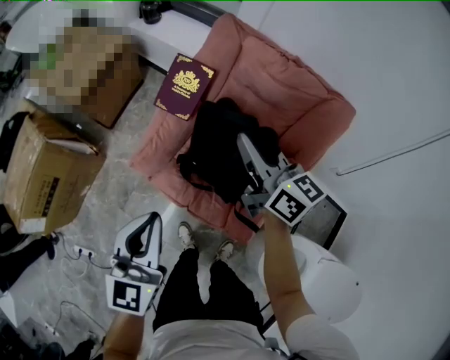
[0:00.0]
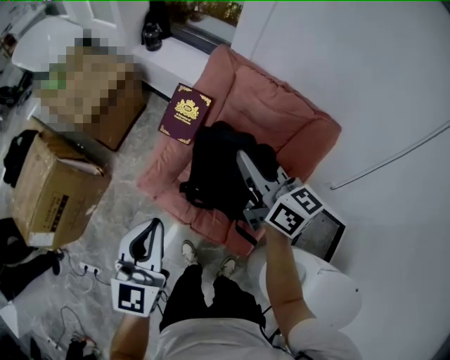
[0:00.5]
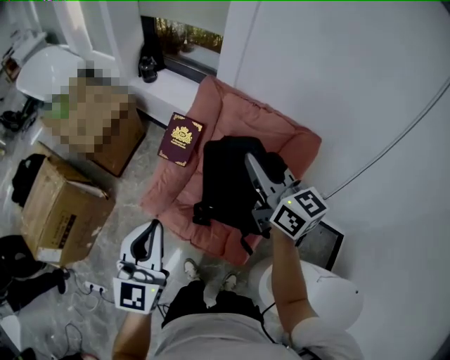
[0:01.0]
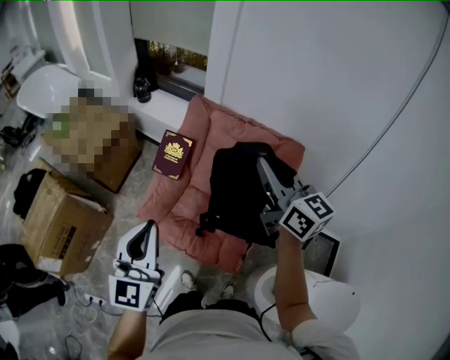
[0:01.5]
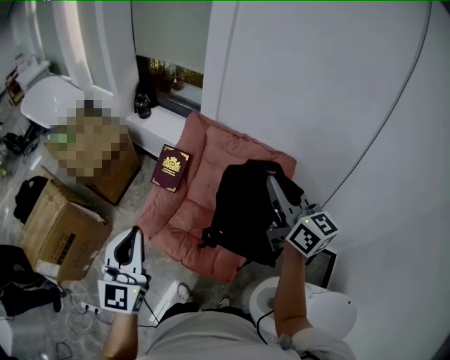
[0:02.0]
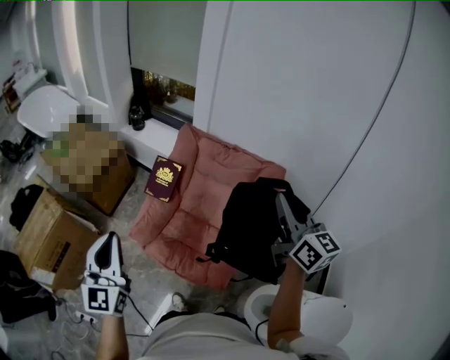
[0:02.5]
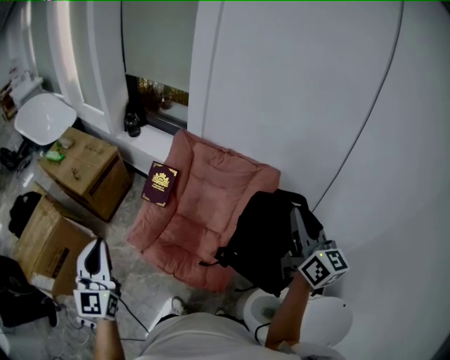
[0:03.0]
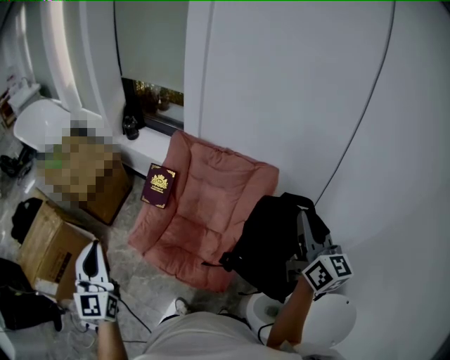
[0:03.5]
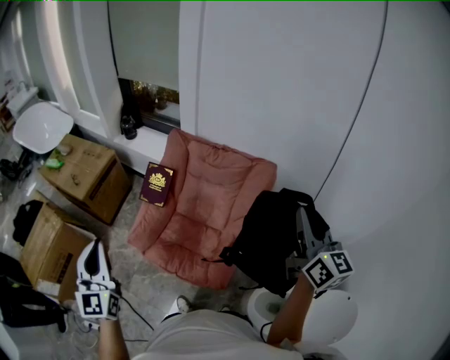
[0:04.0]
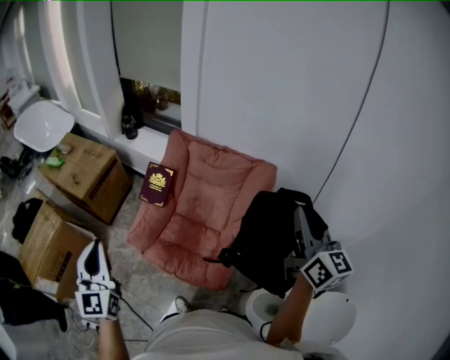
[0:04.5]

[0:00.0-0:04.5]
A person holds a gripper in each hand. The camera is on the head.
0.0 to 2.0 s: The left gripper is displaced upward by roughly 20 cm, while the right gripper goes roughly 30 cm upward, to the right and backward.
2.0 to 4.5 s: The left gripper shifts roughly 5 cm to the left, while the right gripper shifts some 15 cm to the right and backward.

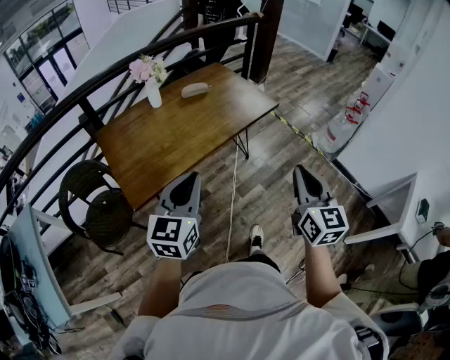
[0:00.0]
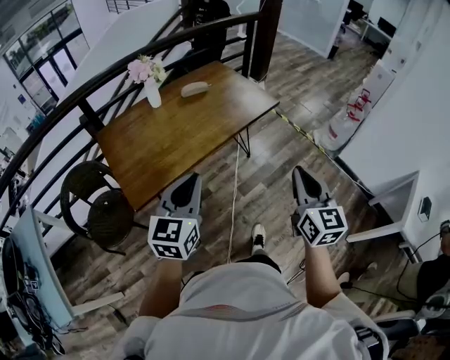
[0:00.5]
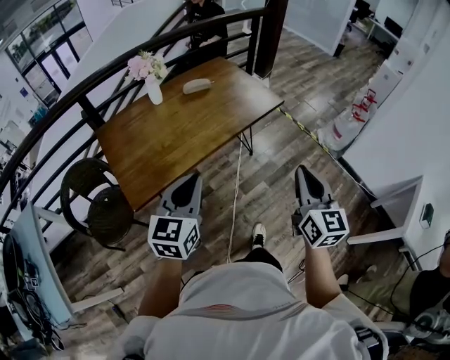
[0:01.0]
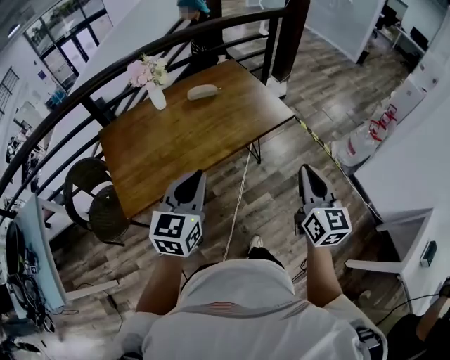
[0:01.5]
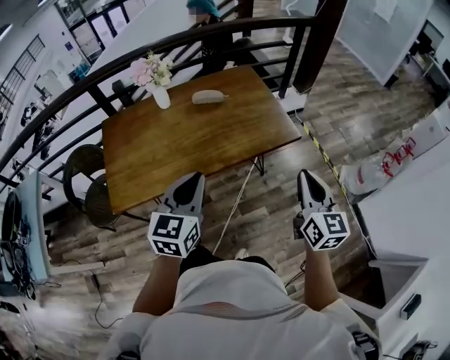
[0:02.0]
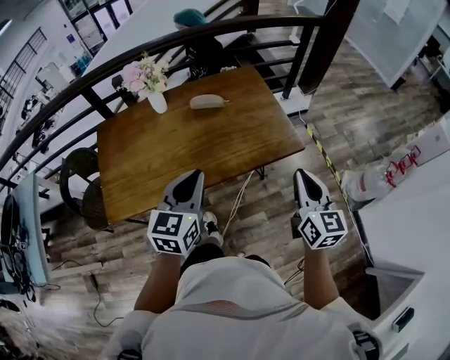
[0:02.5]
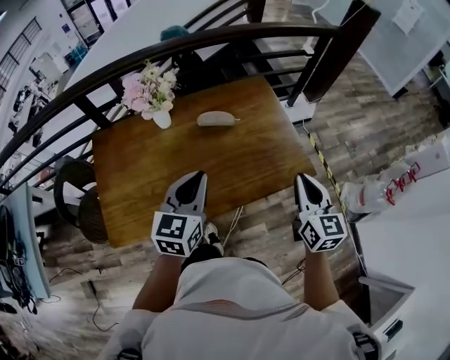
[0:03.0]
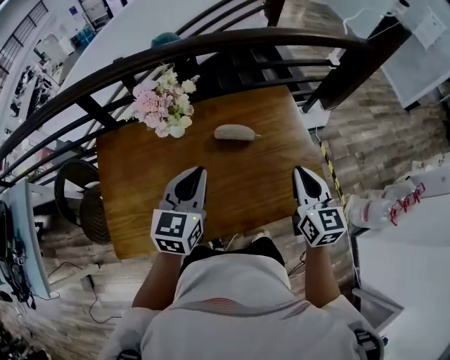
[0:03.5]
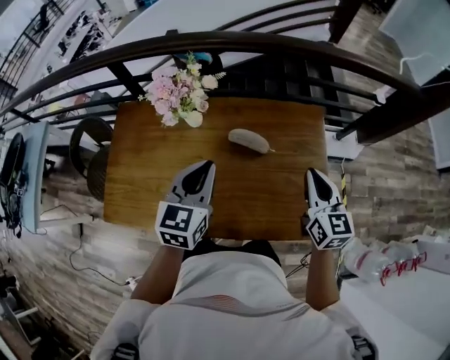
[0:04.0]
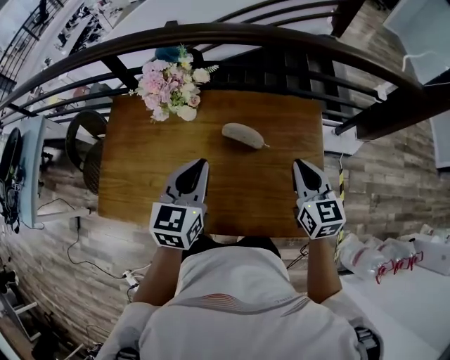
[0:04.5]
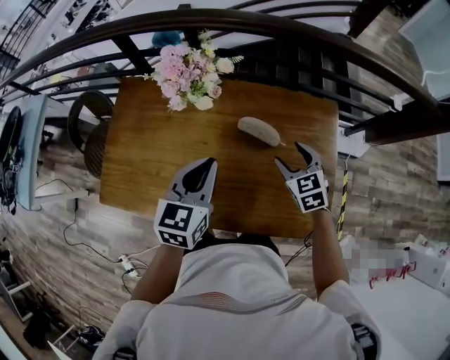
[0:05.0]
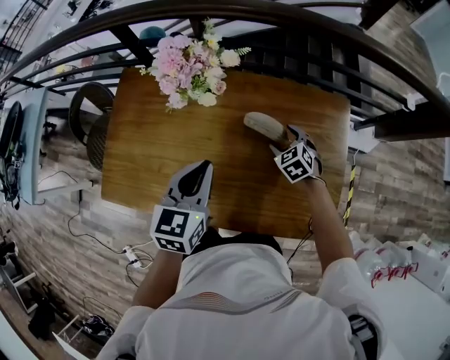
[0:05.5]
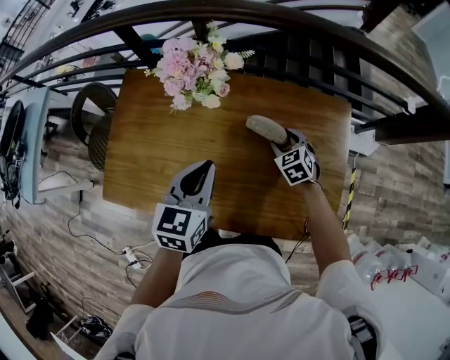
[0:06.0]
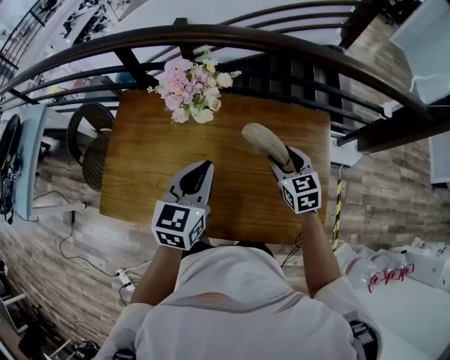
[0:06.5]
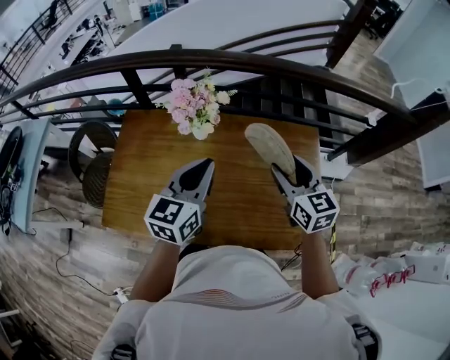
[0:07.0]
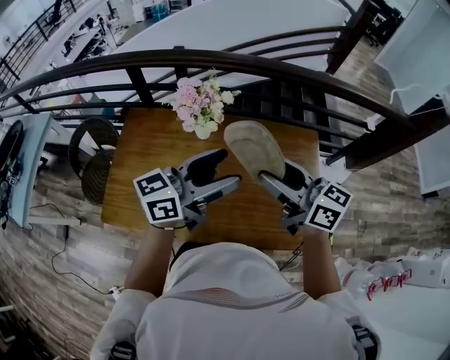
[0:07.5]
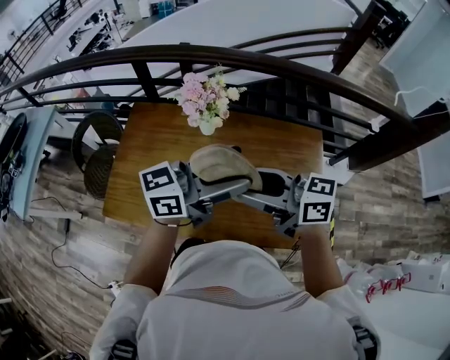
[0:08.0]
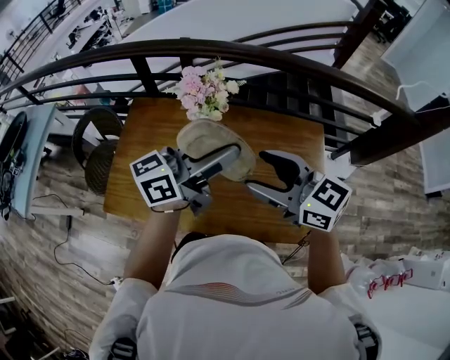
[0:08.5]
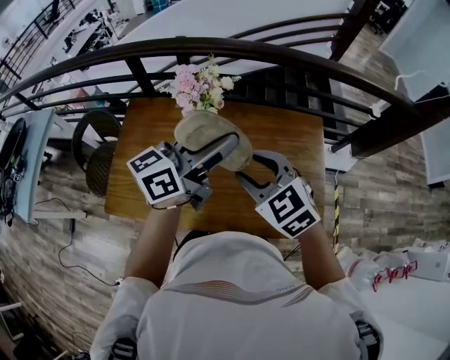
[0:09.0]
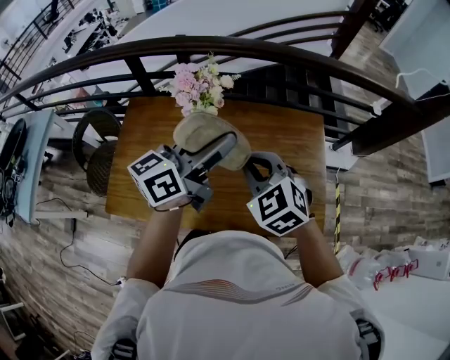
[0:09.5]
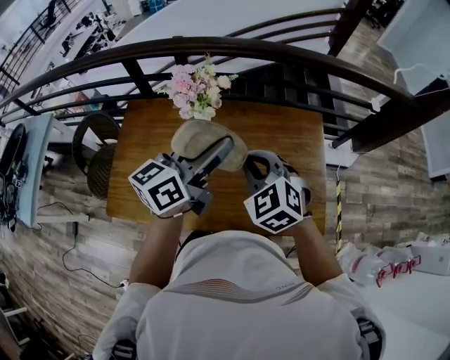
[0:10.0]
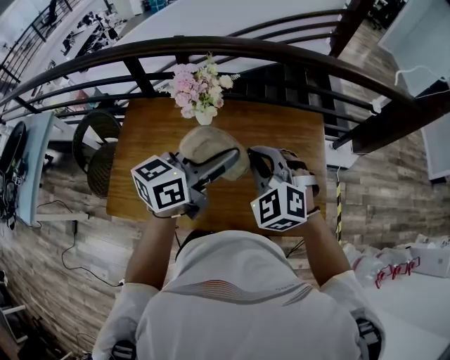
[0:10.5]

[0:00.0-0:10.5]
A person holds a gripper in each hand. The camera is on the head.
0.0 to 2.0 s: The two grippers go roughly 30 cm forward and to the right.
2.0 to 4.0 s: Both grippers travel together forward, roughly 40 cm. The left gripper changes its angle by roughly 20 degrees; the right gripper changes its angle by roughly 30 degrees.
4.0 to 6.5 s: The right gripper heads downward, to the left and forward, covering roughly 15 cm, swivels approximately 30 degrees, and opens up.
6.5 to 8.5 s: Both grippers travel together upward, some 15 cm. The left gripper points its fingers approximately 30 degrees further upward, and opens; the right gripper changes its angle by about 40 degrees.
8.5 to 10.5 s: The right gripper goes some 5 cm downward, rotates roughly 60 degrees, and closes its fingers.

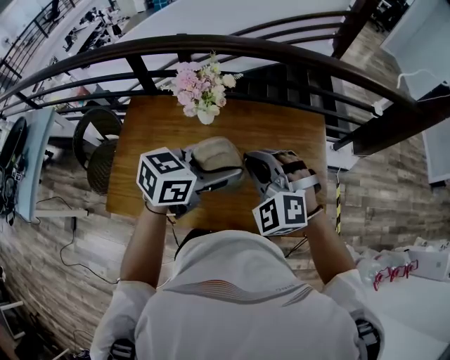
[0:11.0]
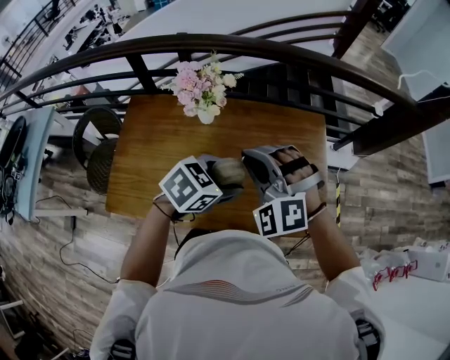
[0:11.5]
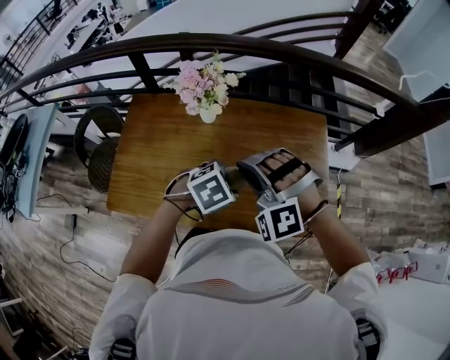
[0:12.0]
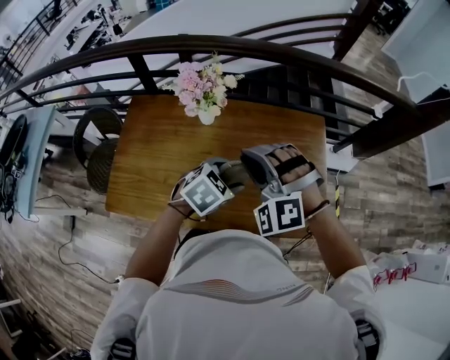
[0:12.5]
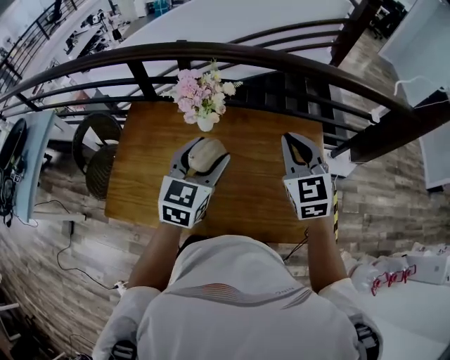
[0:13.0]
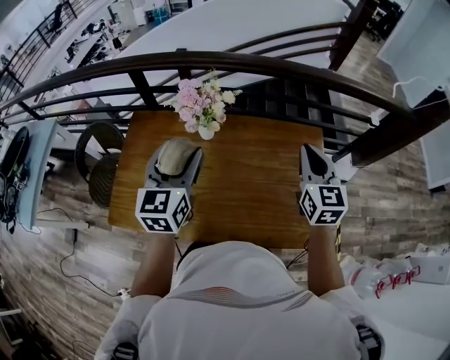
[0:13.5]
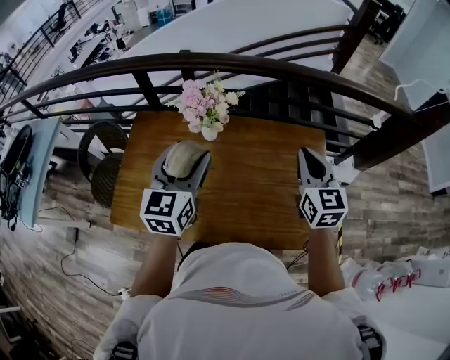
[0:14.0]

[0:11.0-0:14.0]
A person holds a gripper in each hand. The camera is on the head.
11.0 to 12.5 s: The left gripper is displaced downward by about 15 cm, and tilts its fingers approximately 30 degrees downward.
12.5 to 14.0 s: The right gripper goes about 15 cm to the right and forward, and twists approximately 80 degrees clockwise, seen from behind. Meanwhile the left gripper is displaced upward and to the left by some 20 cm, and angles its fingers upward, by some 40 degrees.

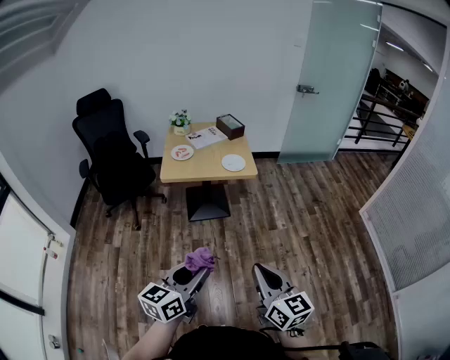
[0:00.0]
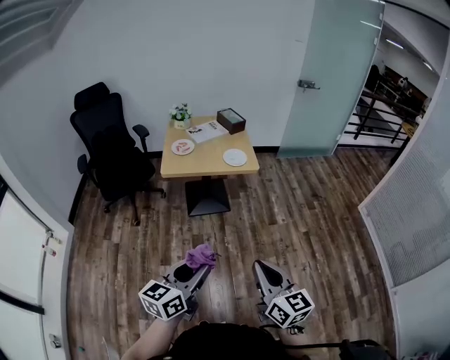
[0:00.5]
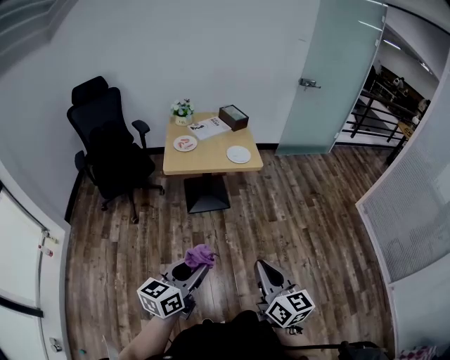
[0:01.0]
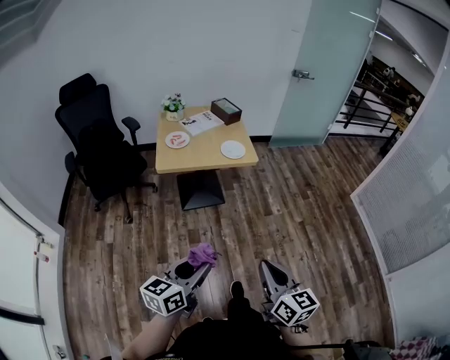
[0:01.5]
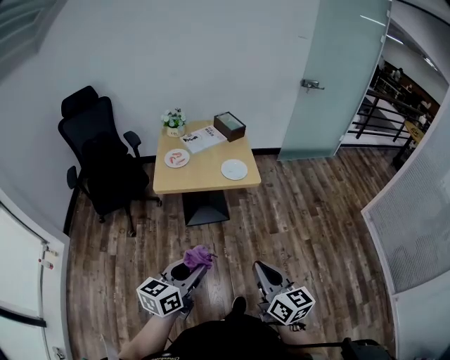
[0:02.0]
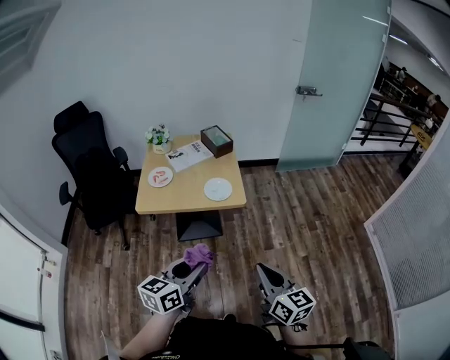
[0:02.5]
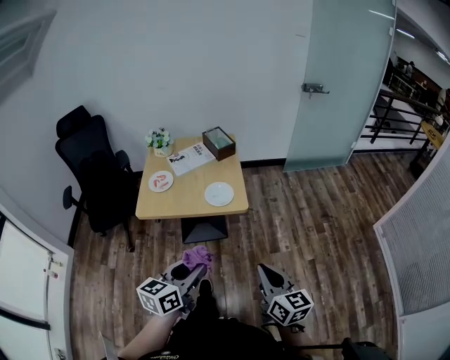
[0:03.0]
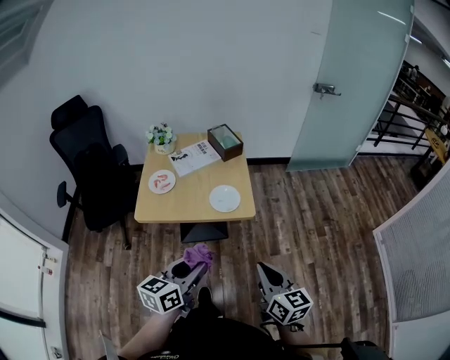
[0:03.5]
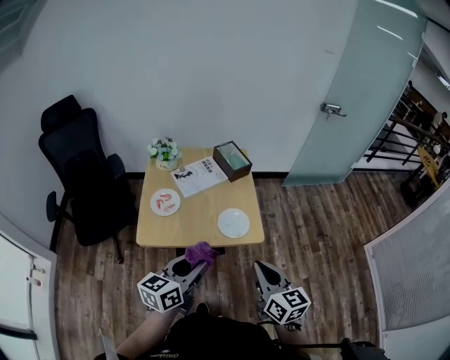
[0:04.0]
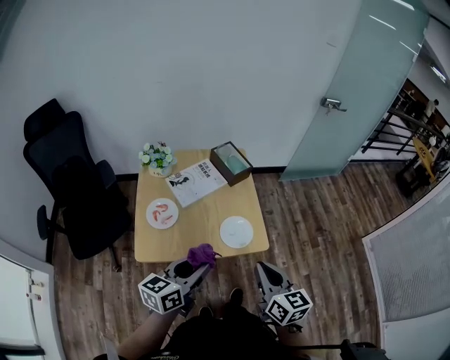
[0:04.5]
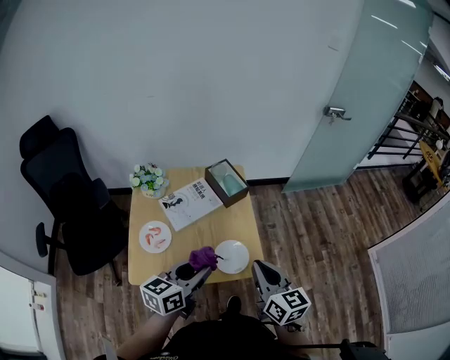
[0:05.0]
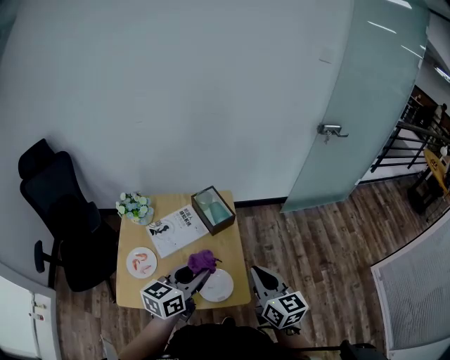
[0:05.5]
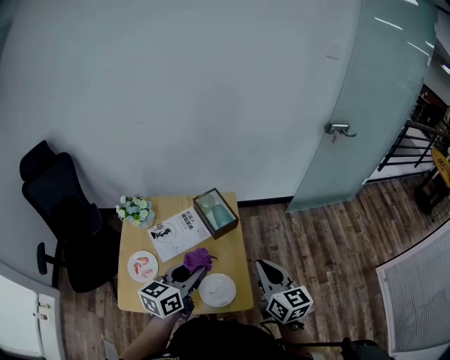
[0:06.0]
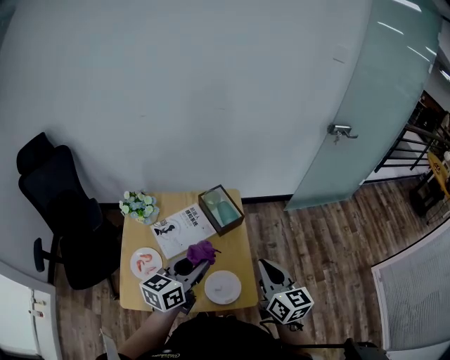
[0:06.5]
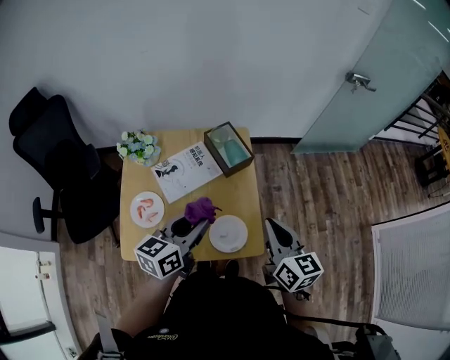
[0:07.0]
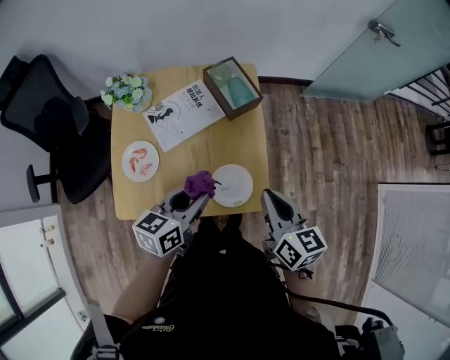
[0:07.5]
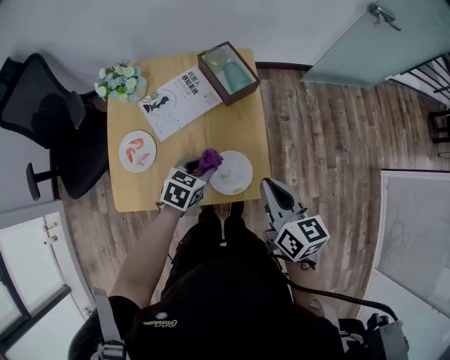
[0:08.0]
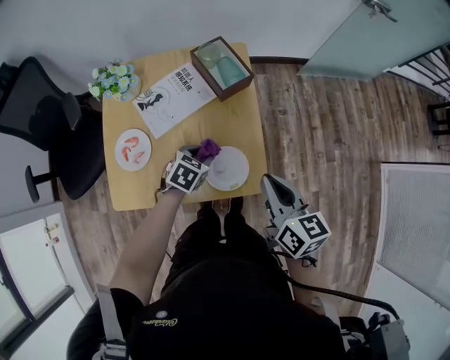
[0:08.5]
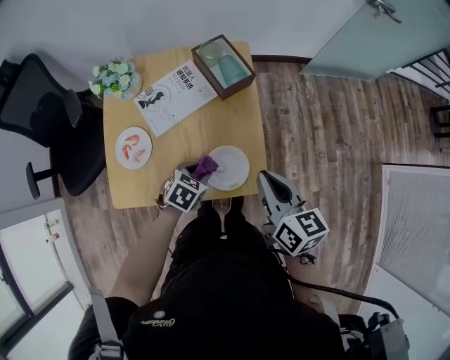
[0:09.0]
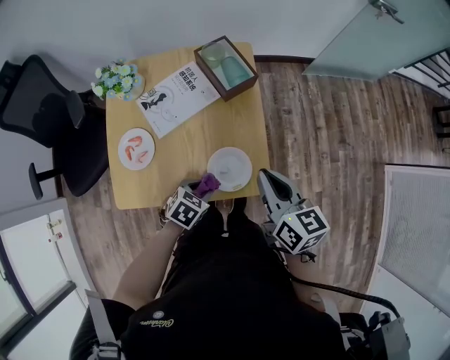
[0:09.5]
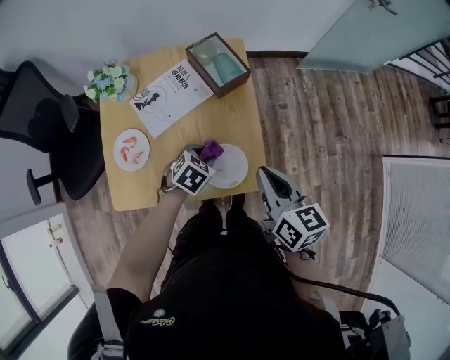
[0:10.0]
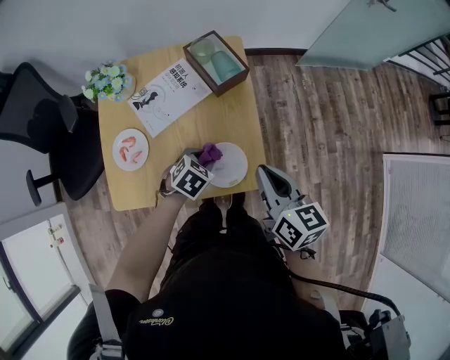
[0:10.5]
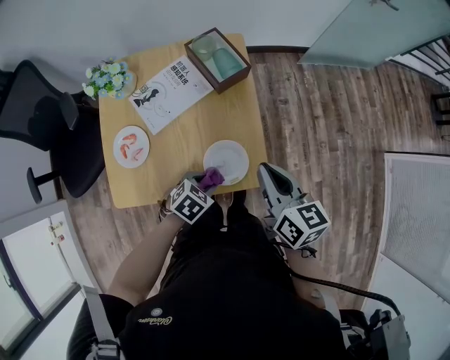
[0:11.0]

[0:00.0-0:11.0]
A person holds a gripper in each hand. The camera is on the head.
0.0 to 2.0 s: The two grippers go about 15 cm forward.
2.0 to 3.5 s: The left gripper moves forward, approximately 25 cm, while the right gripper shifts roughly 25 cm forward and to the right.
3.5 to 5.5 s: Both grippers move forward, approximately 40 cm.
5.5 to 7.5 s: The left gripper shifts some 10 cm downward and to the left. The right gripper goes some 10 cm downward.
7.5 to 9.0 s: The left gripper moves downward, some 15 cm, and tips its fingers downward by roughly 30 degrees.
9.0 to 11.0 s: The left gripper goes forward and backward, about 10 cm each way, reversing 2 times.
